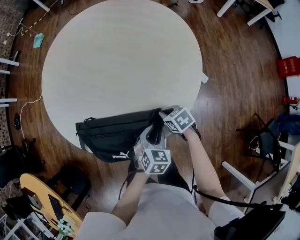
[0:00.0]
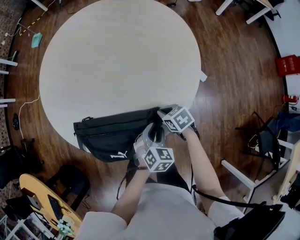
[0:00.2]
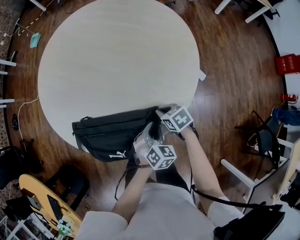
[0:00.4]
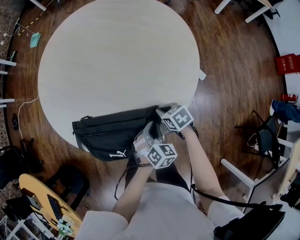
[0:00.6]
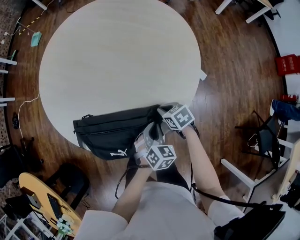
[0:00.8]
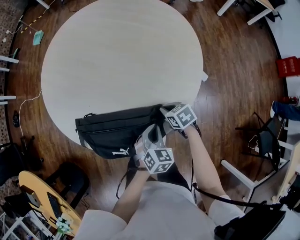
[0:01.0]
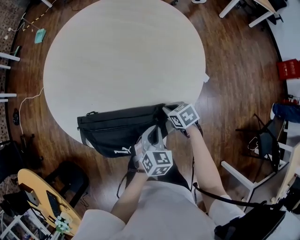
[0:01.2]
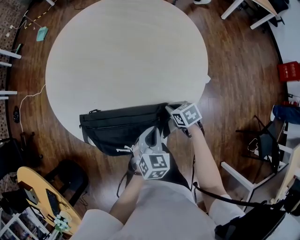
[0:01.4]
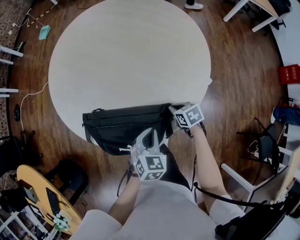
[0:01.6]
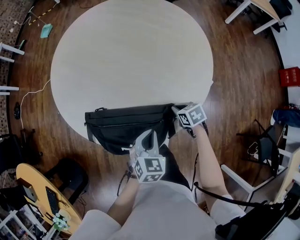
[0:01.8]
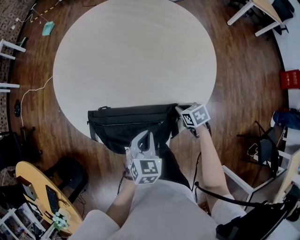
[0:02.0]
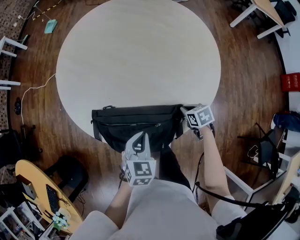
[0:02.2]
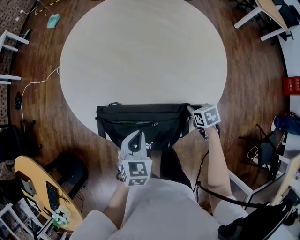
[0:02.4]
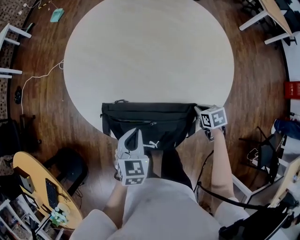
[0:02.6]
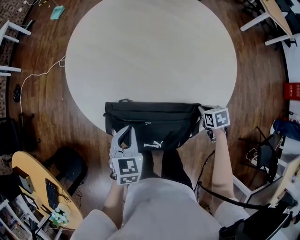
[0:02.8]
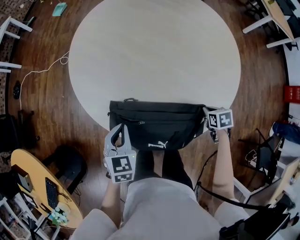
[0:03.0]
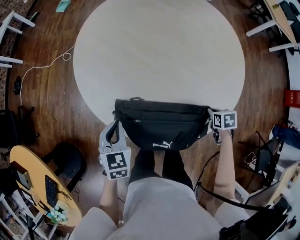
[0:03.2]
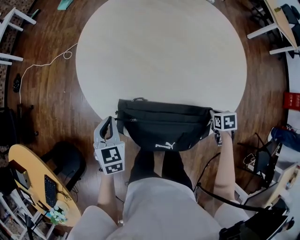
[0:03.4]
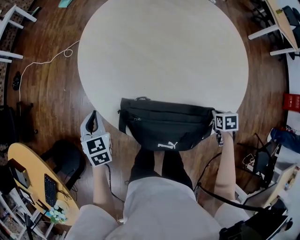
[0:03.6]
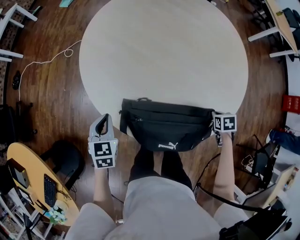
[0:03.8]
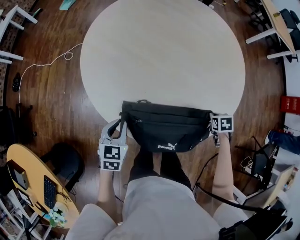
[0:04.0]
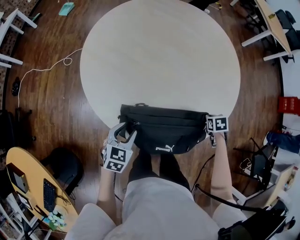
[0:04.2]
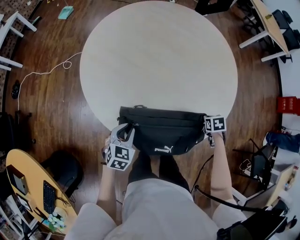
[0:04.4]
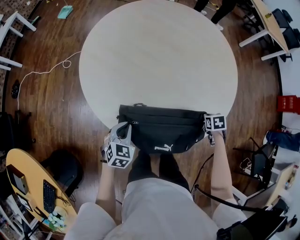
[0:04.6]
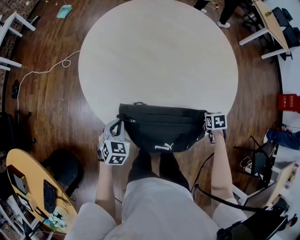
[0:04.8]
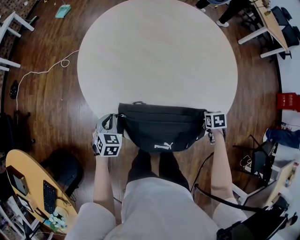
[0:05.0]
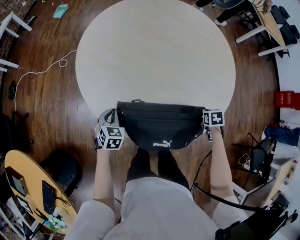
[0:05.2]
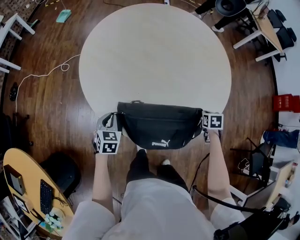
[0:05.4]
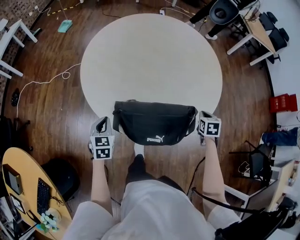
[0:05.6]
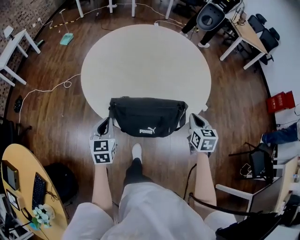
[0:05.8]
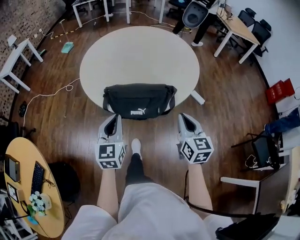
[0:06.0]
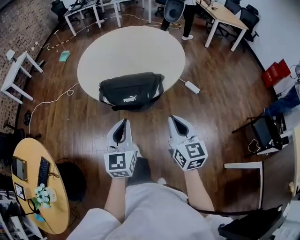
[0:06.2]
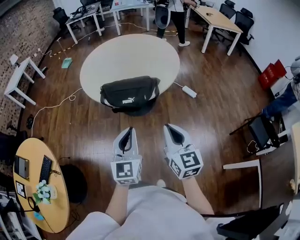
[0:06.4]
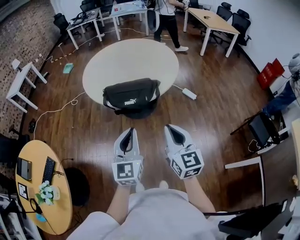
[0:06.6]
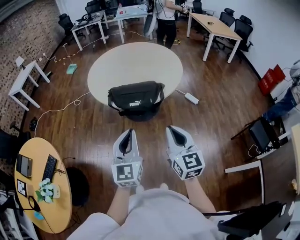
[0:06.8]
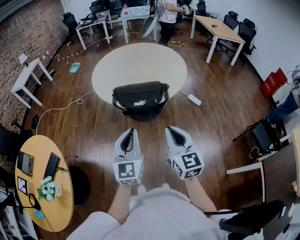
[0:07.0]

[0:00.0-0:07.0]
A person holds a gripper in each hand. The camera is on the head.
0.0 to 1.4 s: The left gripper moves approximately 5 cm, and closes up.
1.4 to 2.8 s: The left gripper shifts some 25 cm to the left.
2.8 to 4.2 s: The left gripper opens.
4.2 to 5.6 s: The left gripper reaches approximately 5 cm downward, then returns, rotates roughly 20 degrees, and closes up. Meanwhile the right gripper shifts approximately 10 cm upward, and turns by approximately 20 degrees.
5.6 to 7.0 s: The left gripper heads backward, upward and to the right, covering some 60 cm, and points its fingers roughly 40 degrees further upward, while the right gripper is displaced backward and upward by about 60 cm, and tips its fingers upward by approximately 50 degrees.

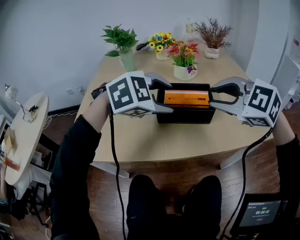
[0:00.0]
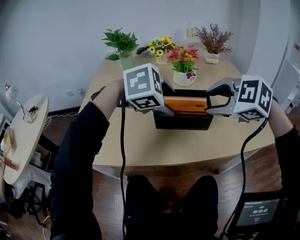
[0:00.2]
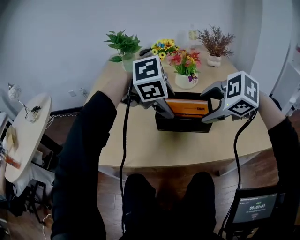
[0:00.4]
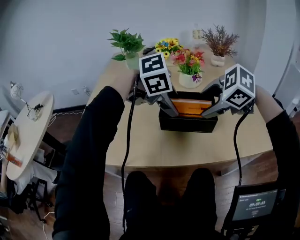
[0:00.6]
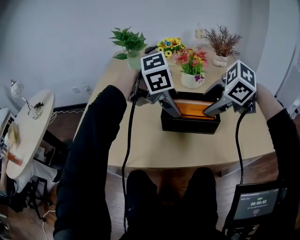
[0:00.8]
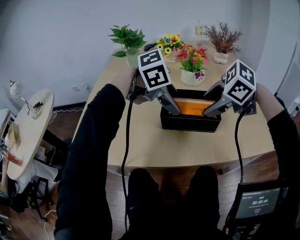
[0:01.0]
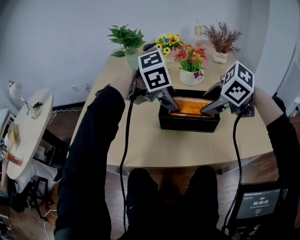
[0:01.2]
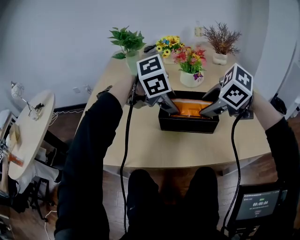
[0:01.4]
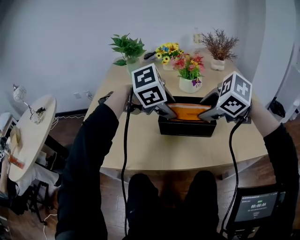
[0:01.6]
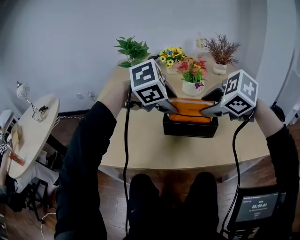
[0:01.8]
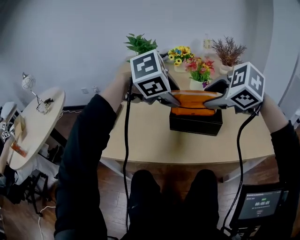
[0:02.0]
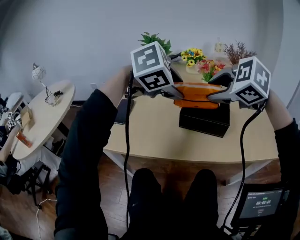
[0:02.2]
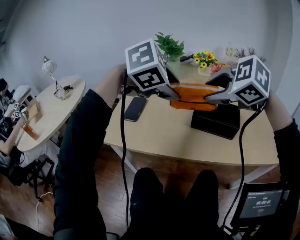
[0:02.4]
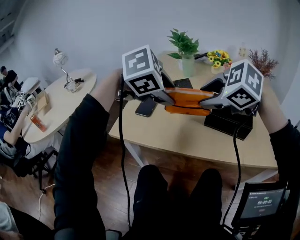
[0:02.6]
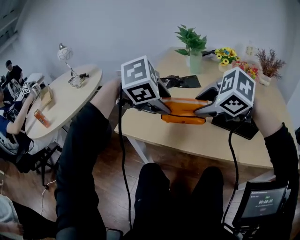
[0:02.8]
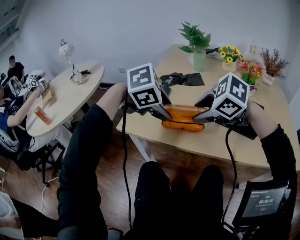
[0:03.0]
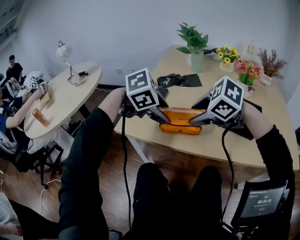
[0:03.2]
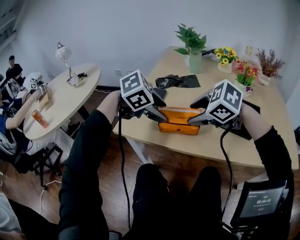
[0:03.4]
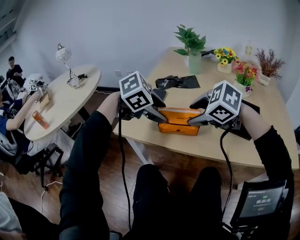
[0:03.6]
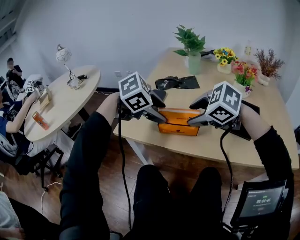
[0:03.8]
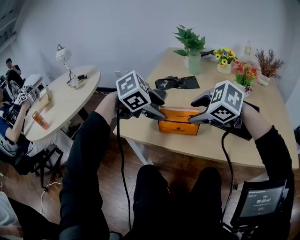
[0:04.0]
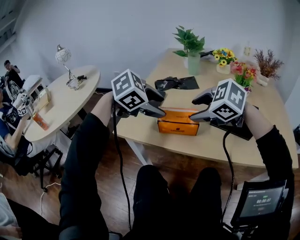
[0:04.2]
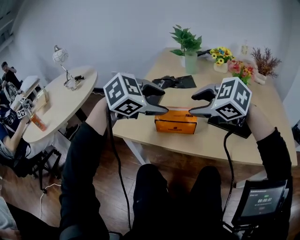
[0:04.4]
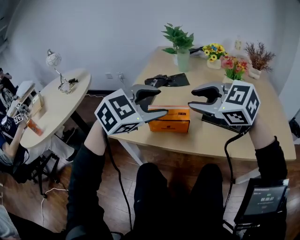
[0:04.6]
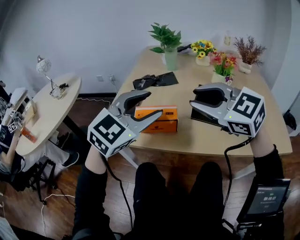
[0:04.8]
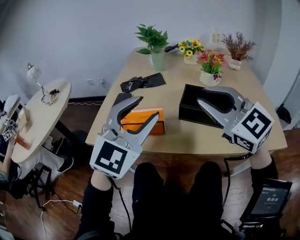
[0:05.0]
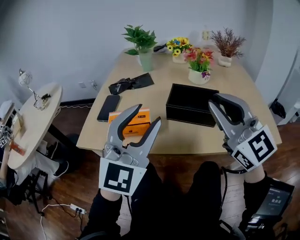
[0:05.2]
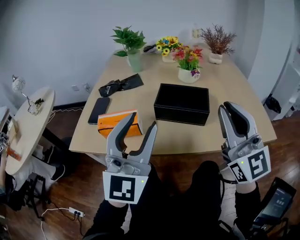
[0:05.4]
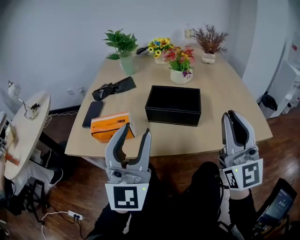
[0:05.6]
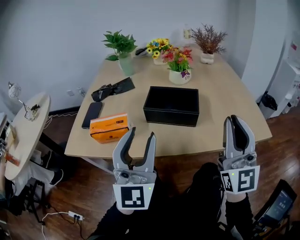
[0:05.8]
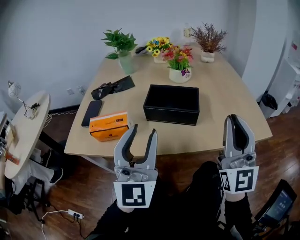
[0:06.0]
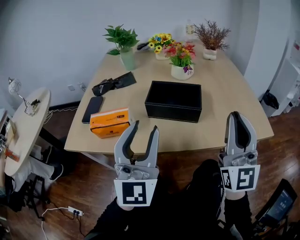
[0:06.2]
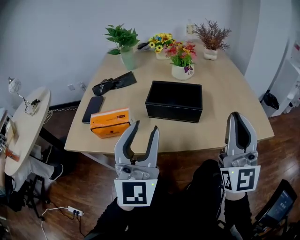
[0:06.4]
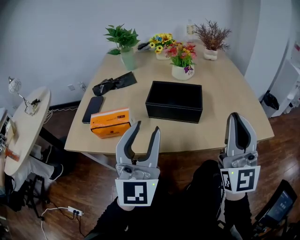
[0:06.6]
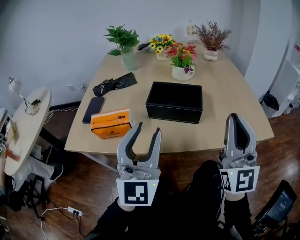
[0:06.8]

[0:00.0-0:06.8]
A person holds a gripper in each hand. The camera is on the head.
0.0 to 1.4 s: The right gripper is displaced downward by approximately 5 cm, and swivels some 30 degrees. Meanwhile the left gripper shifts by approximately 5 cm, and swivels about 30 degrees.
1.4 to 2.8 s: The left gripper shifts by about 25 cm, and rotates approximately 20 degrees. Meanwhile the right gripper ends up about 25 cm from where it was, and swivels approximately 30 degrees.
2.8 to 4.0 s: The left gripper shifts by approximately 5 cm. Meanwhile the right gripper changes place by about 5 cm.
4.0 to 5.4 s: The left gripper changes place by some 20 cm, and tilts its fingers about 70 degrees upward, while the right gripper shifts by some 30 cm, tips its fingers upward by approximately 70 degrees, and closes its fingers.
5.4 to 6.8 s: The right gripper heads to the right, covering roughly 5 cm. Meanwhile the left gripper moves roughly 5 cm.

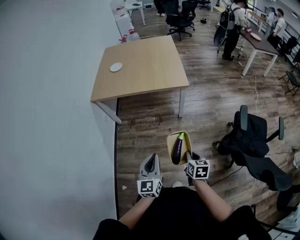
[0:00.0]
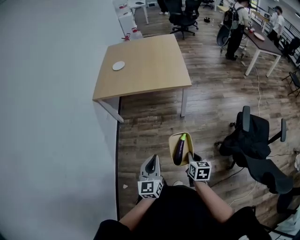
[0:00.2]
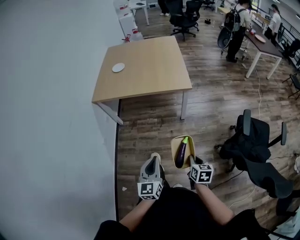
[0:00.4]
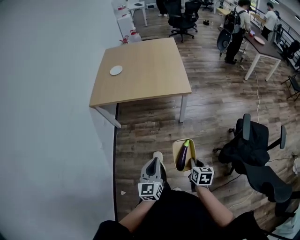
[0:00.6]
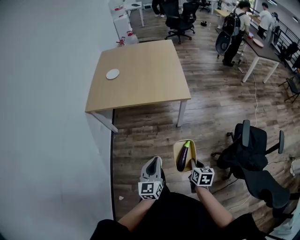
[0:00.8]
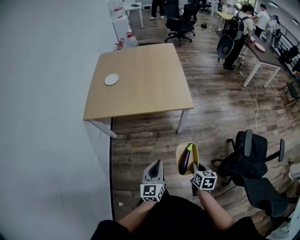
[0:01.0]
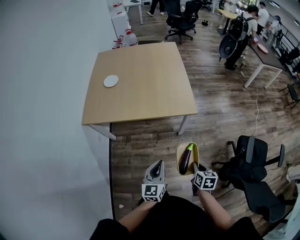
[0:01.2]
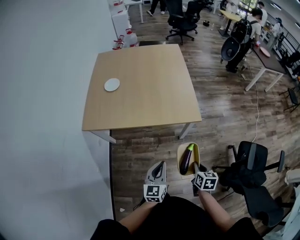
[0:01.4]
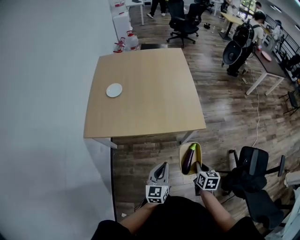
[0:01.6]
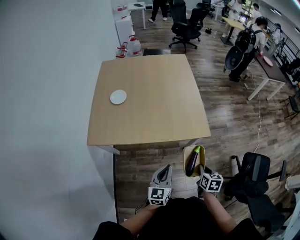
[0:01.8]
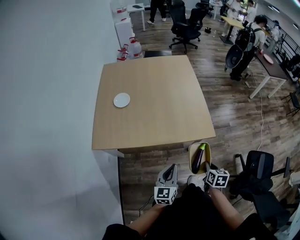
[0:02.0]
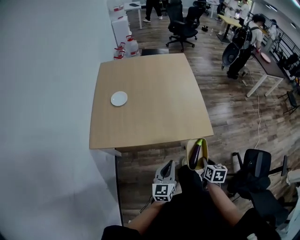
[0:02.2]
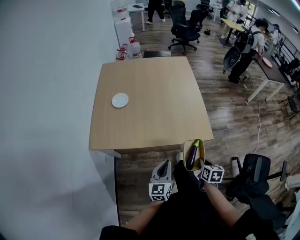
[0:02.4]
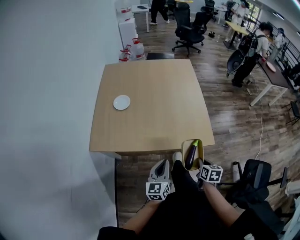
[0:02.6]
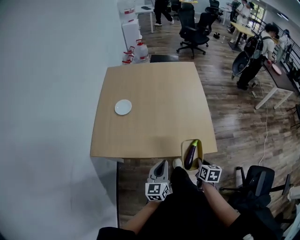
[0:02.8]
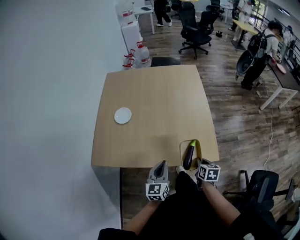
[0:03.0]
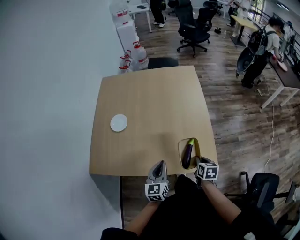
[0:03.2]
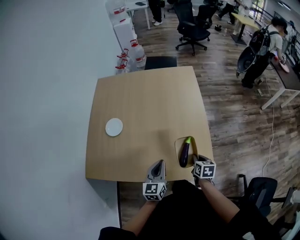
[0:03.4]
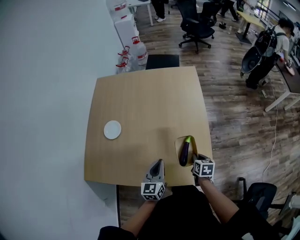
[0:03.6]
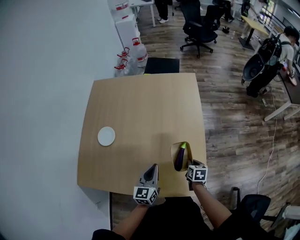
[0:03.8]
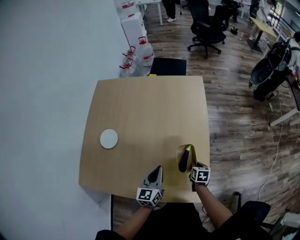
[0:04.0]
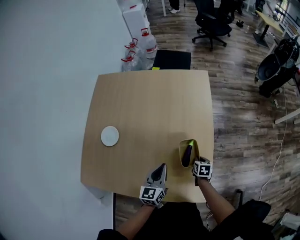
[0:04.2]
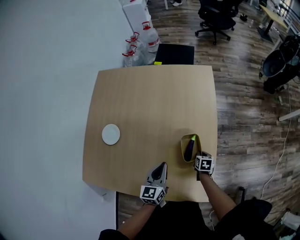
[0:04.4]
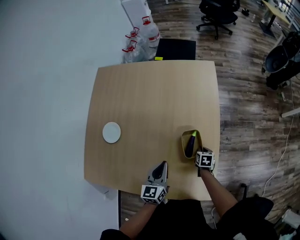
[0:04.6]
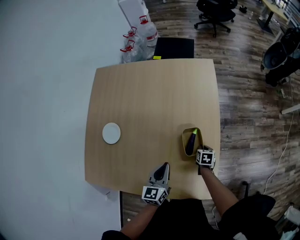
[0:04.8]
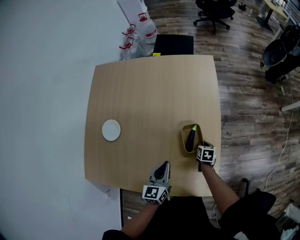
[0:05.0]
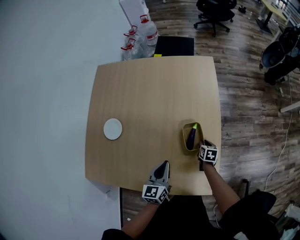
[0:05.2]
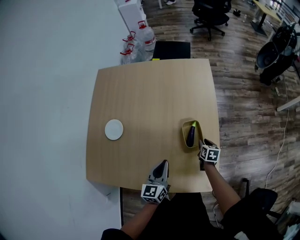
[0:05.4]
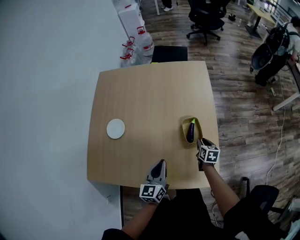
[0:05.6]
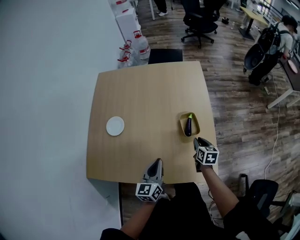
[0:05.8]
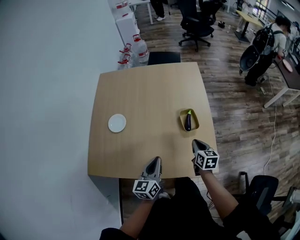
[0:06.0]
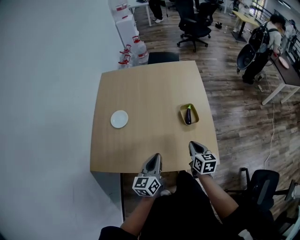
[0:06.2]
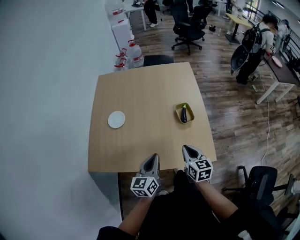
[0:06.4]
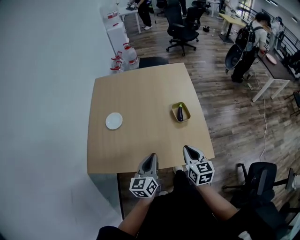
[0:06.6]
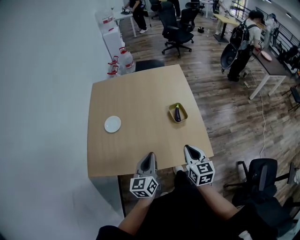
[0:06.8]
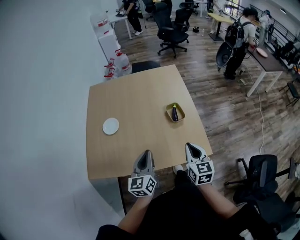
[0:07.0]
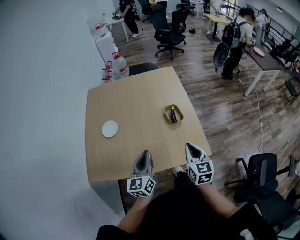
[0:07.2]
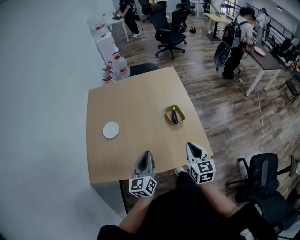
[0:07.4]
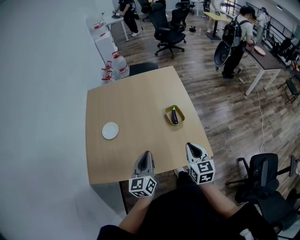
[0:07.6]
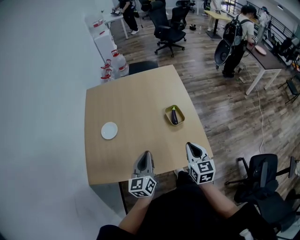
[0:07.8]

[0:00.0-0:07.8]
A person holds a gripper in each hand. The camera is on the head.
0.0 to 1.6 s: The grippers both shift forward by roughly 35 cm.
1.6 to 3.2 s: Both grippers move forward, about 30 cm.
3.2 to 4.6 s: The left gripper is displaced forward by approximately 20 cm. Meanwhile the right gripper goes roughly 30 cm forward and downward.
4.6 to 6.2 s: The left gripper moves backward, upward and to the left, roughly 25 cm. Meanwhile the right gripper moves upward, backward and to the left, approximately 35 cm, tips its fingers upward by roughly 30 degrees, and opens, then closes again.
6.2 to 7.8 s: The left gripper is displaced upward by about 5 cm, while the right gripper is displaced upward and backward by about 10 cm.

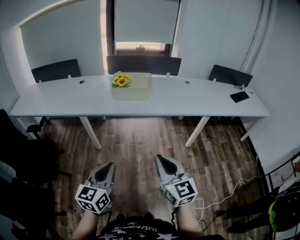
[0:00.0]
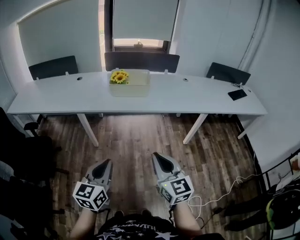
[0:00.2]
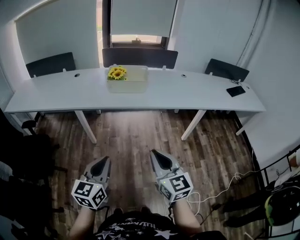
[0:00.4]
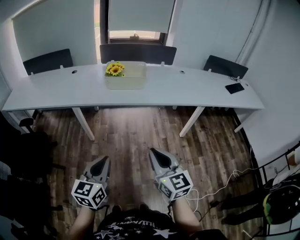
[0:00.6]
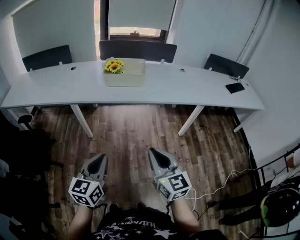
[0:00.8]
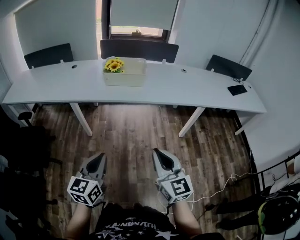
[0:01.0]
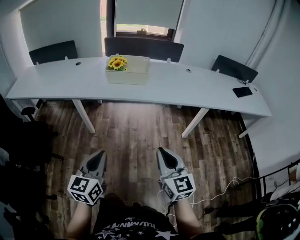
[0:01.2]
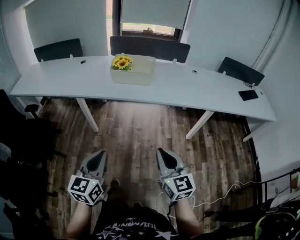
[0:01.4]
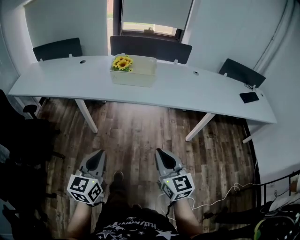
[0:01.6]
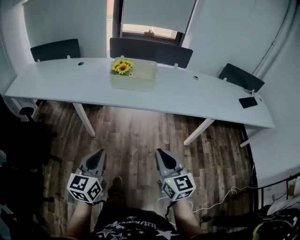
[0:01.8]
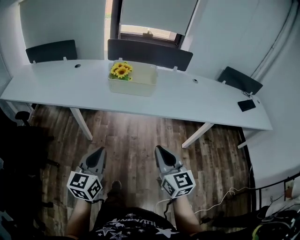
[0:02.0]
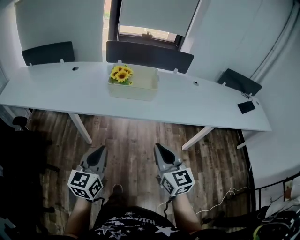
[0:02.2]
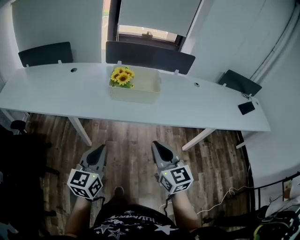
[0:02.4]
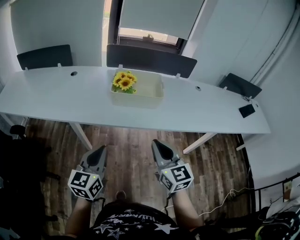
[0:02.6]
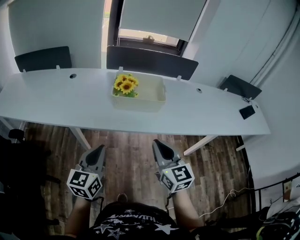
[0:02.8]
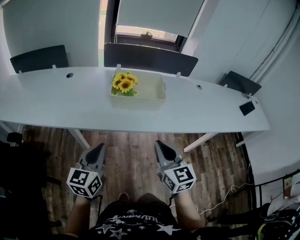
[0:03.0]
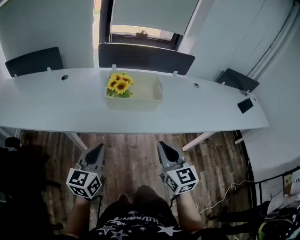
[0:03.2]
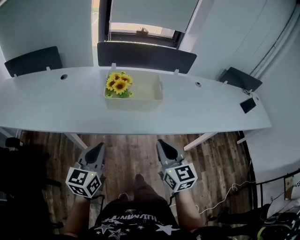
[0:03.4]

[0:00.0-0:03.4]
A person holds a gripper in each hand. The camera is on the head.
0.0 to 1.6 s: The right gripper heads forward, downward and to the right, covering roughly 10 cm; the left gripper moves forward, roughly 5 cm.
1.6 to 3.4 s: The two grippers go roughly 30 cm forward.
